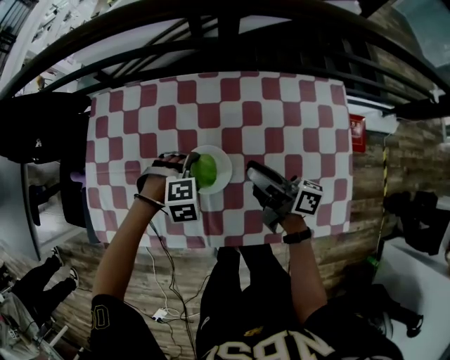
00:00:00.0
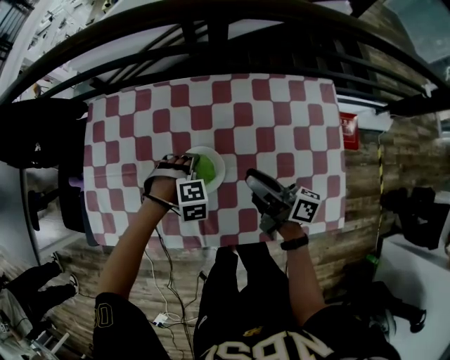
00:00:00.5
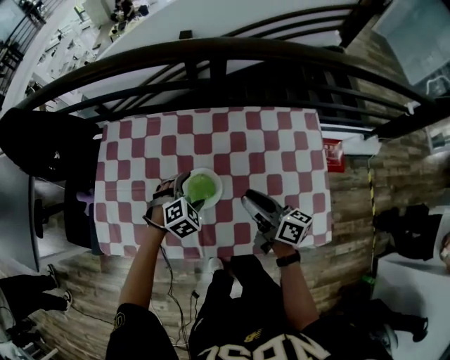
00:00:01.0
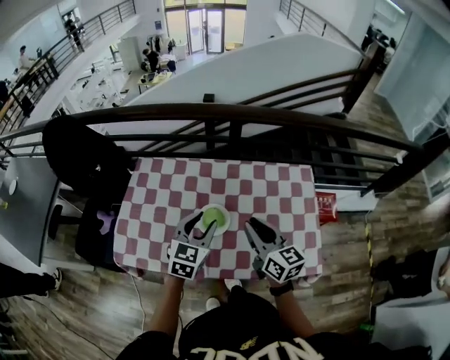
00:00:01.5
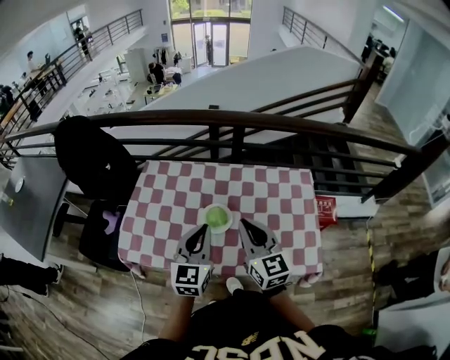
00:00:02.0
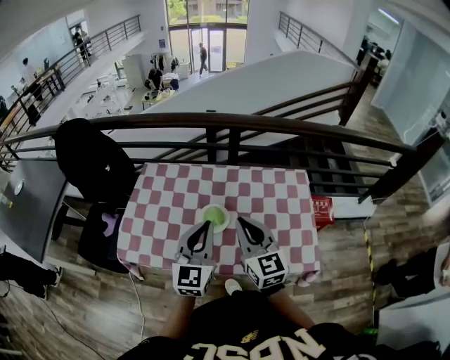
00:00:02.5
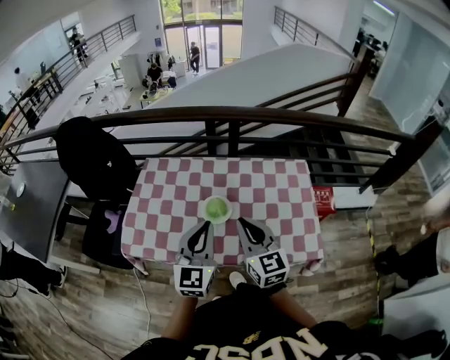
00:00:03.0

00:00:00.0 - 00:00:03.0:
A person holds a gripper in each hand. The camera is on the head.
00:00:00.0 - 00:00:01.5: The right gripper shifts about 20 cm upward, and rolls counterclockwise, seen from behind, by about 50 degrees. The left gripper shifts about 25 cm upward, angles its fingers upward, by roughly 50 degrees, and closes its fingers.
00:00:01.5 - 00:00:03.0: The right gripper goes roughly 10 cm backward, and rotates roughly 20 degrees. The left gripper travels backward and upward by roughly 15 cm, turns by roughly 20 degrees, and closes up.

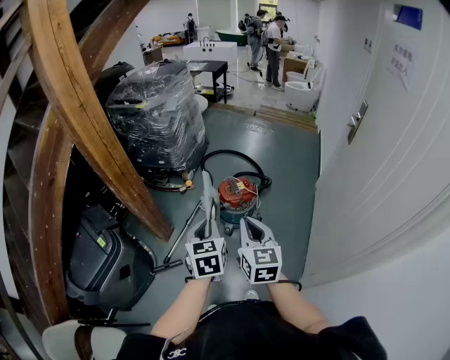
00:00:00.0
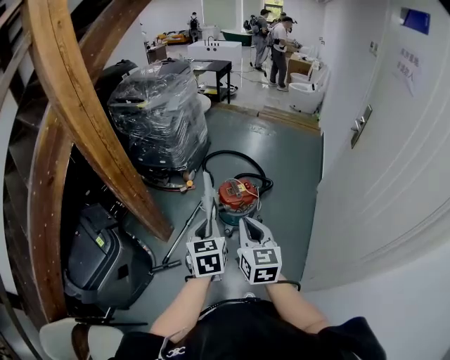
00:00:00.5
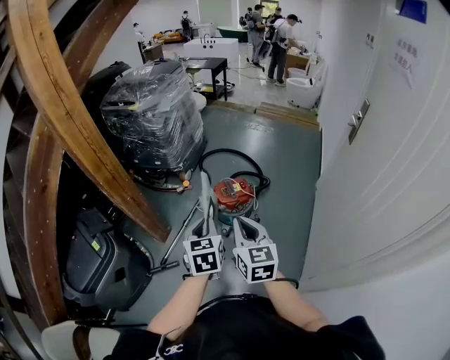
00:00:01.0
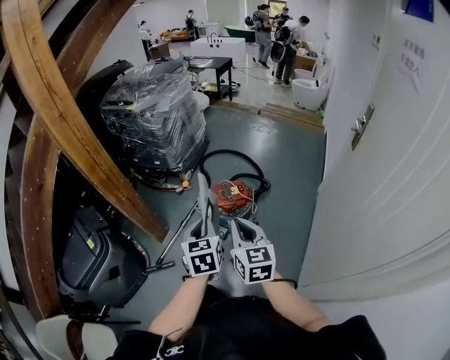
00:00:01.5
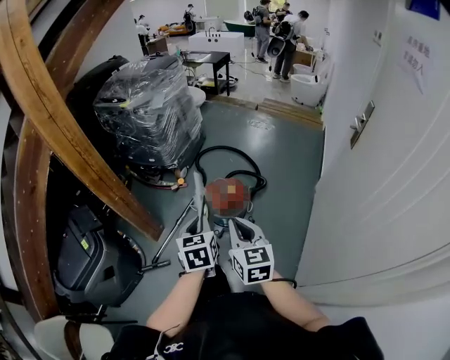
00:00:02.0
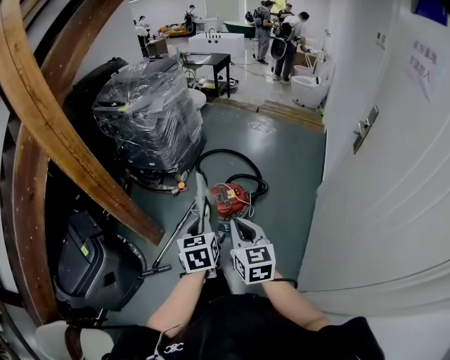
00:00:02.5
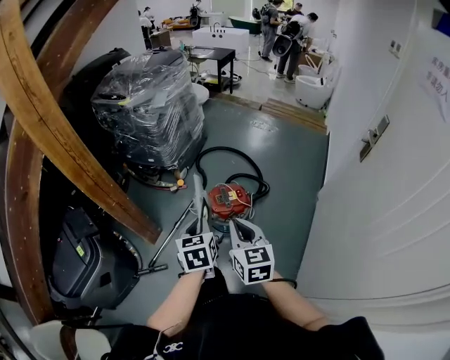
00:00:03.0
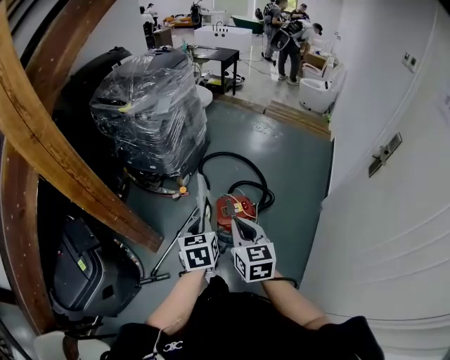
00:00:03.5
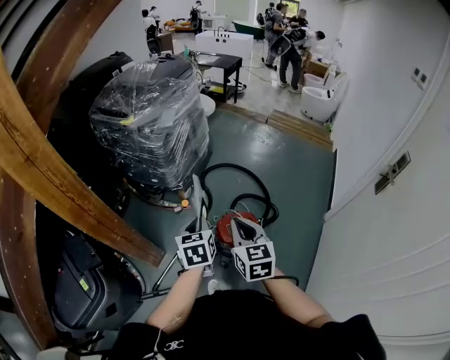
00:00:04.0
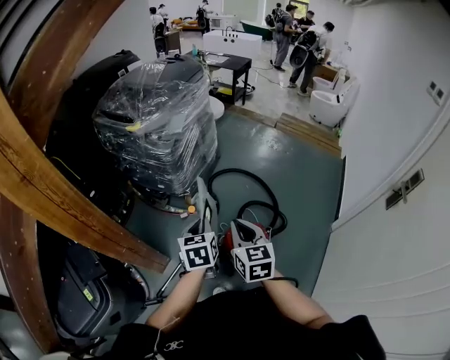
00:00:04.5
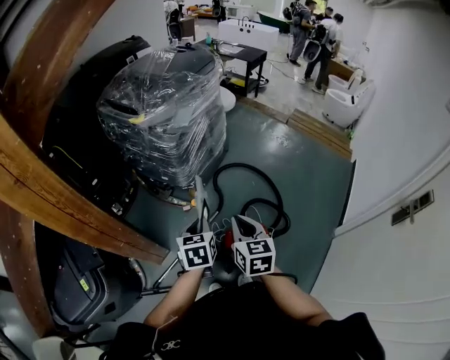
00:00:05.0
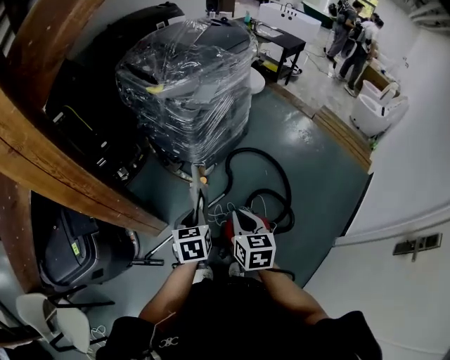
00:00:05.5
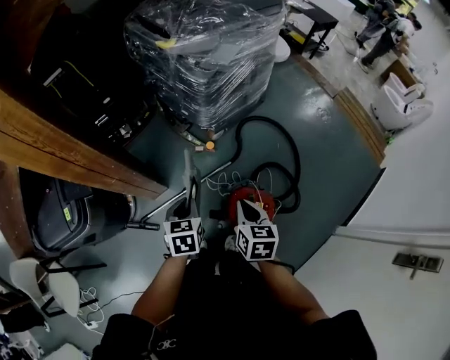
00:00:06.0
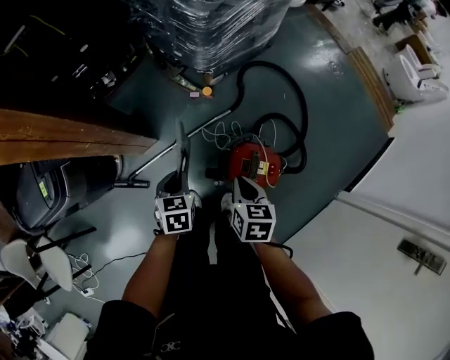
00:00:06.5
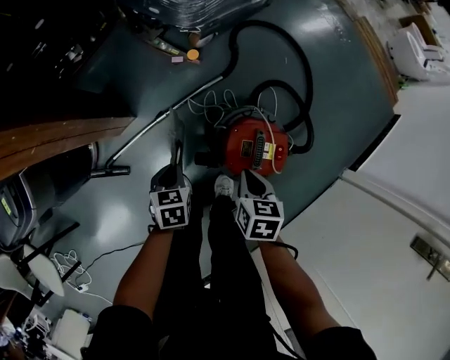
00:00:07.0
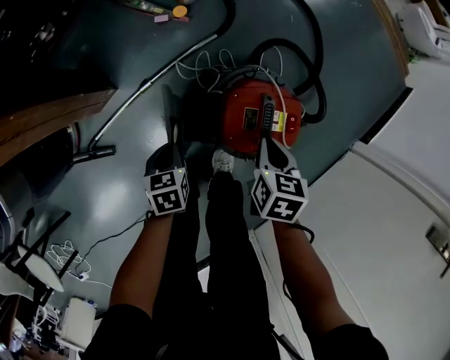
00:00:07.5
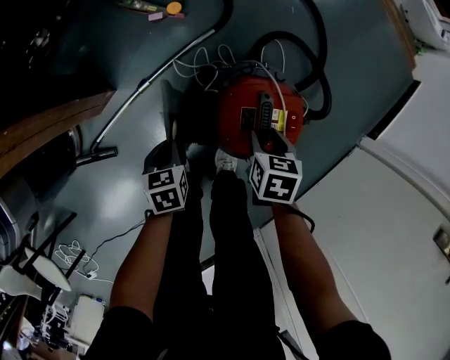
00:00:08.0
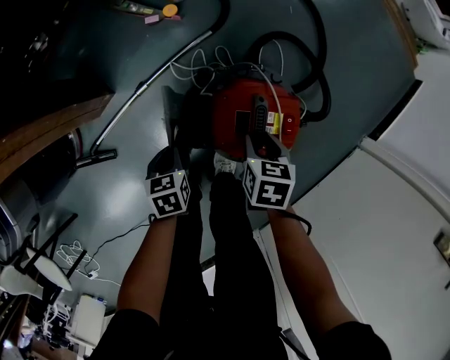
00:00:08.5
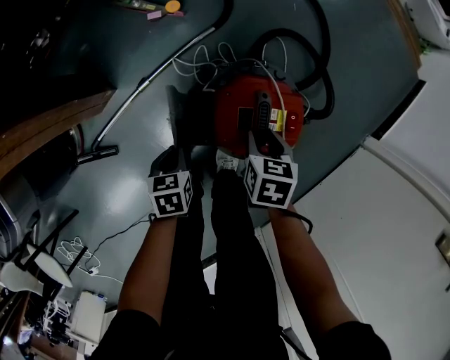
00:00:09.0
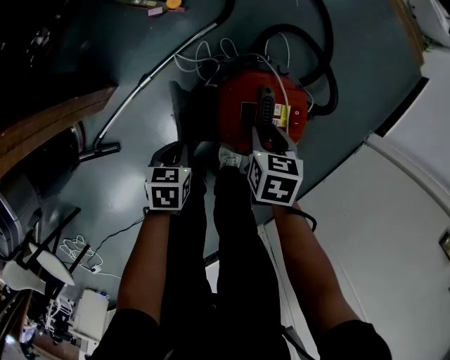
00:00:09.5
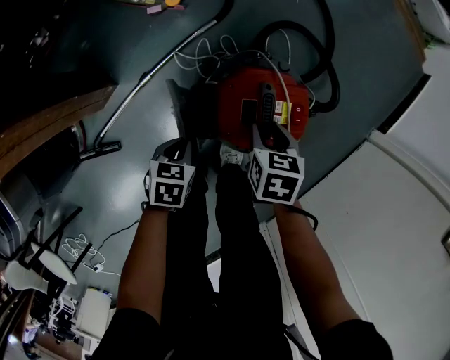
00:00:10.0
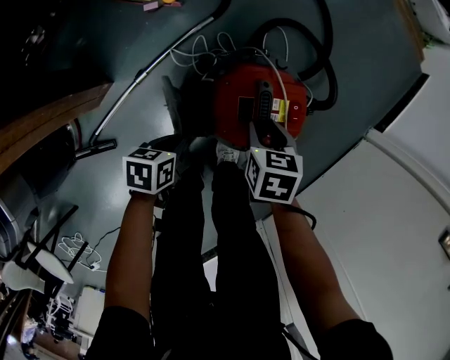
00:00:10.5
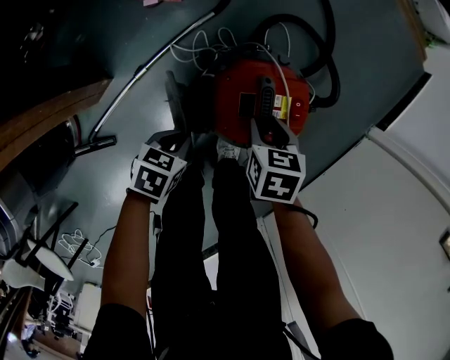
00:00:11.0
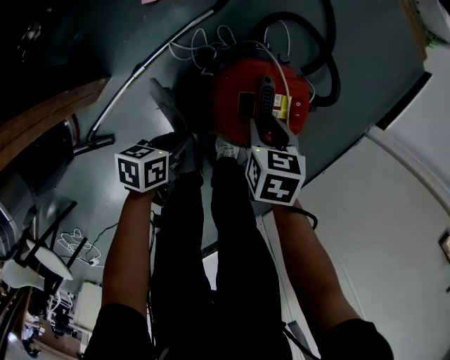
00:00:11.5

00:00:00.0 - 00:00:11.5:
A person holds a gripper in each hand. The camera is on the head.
00:00:00.0 - 00:00:02.0: The grippers both shift to the right and forward by about 15 cm.
00:00:02.0 - 00:00:04.0: The two grippers go approximately 25 cm forward.
00:00:04.0 - 00:00:06.0: The right gripper moves downward and forward, about 20 cm, and swivels some 30 degrees, while the left gripper shifts roughly 15 cm downward, forward and to the left, and swivels approximately 20 degrees.
00:00:06.0 - 00:00:07.5: Both grippers travel together downward, about 40 cm. The right gripper changes its angle by some 20 degrees.
00:00:07.5 - 00:00:09.5: The left gripper travels to the right by some 5 cm, while the right gripper heads downward, covering some 5 cm, and opens.
00:00:09.5 - 00:00:11.5: The left gripper swivels some 30 degrees.

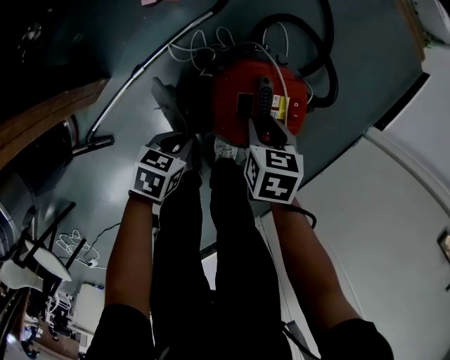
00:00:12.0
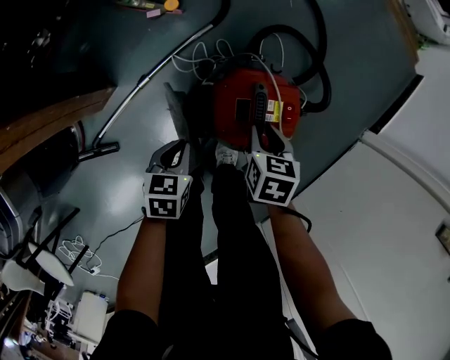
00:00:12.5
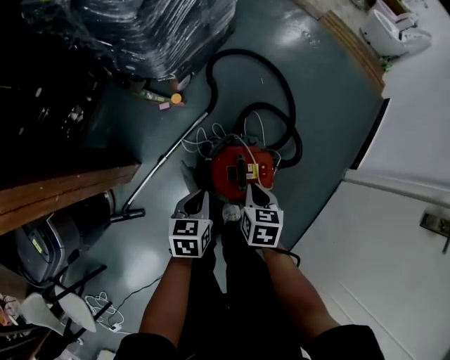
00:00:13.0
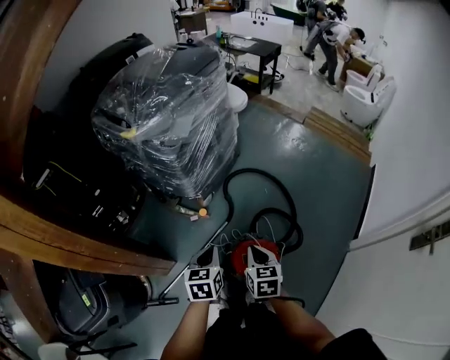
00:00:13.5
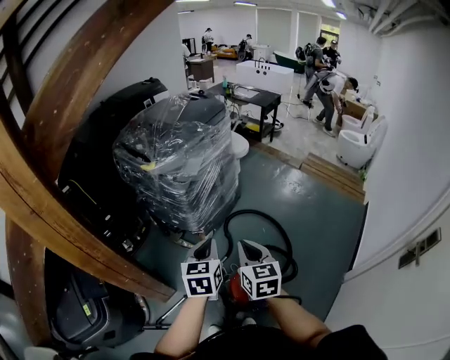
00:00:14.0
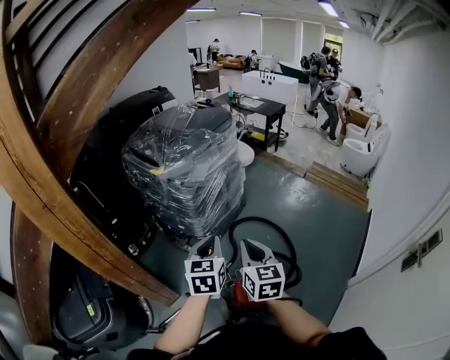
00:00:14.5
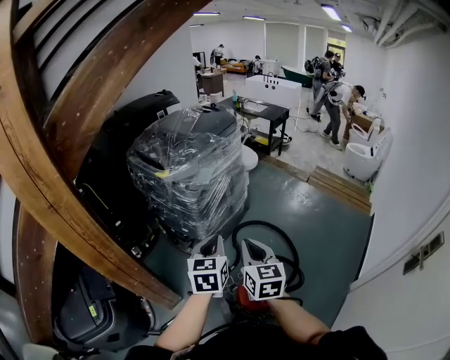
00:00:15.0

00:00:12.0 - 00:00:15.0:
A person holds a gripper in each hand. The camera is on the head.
00:00:12.0 - 00:00:13.5: Both grippers move upward, some 40 cm. The right gripper turns by about 30 degrees, and closes up, while the left gripper rotates roughly 40 degrees.
00:00:13.5 - 00:00:15.0: Both grippers move upward, some 20 cm. The left gripper changes its angle by about 20 degrees. Meanwhile the right gripper swivels approximately 30 degrees.

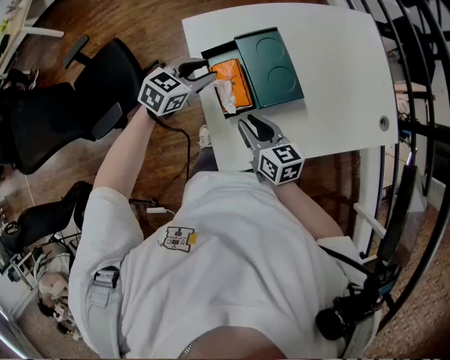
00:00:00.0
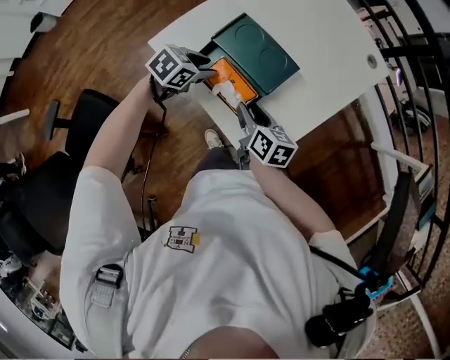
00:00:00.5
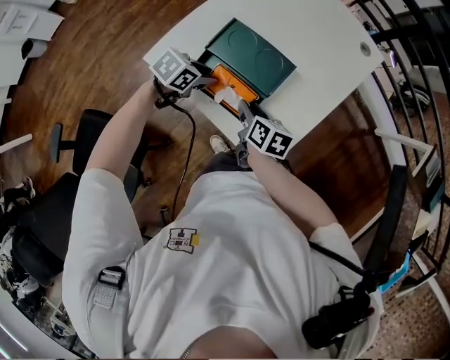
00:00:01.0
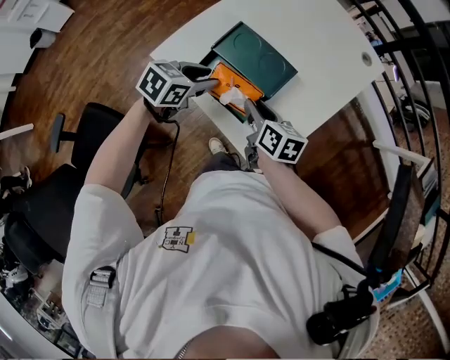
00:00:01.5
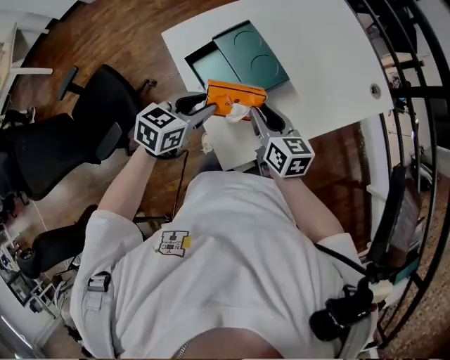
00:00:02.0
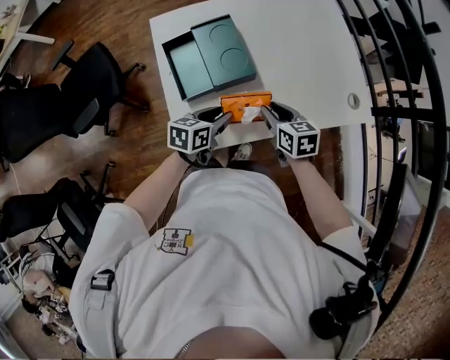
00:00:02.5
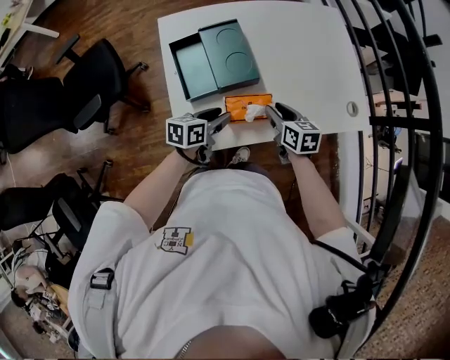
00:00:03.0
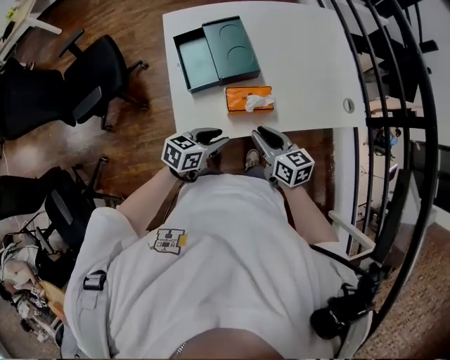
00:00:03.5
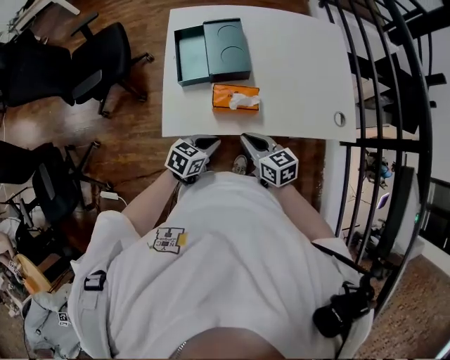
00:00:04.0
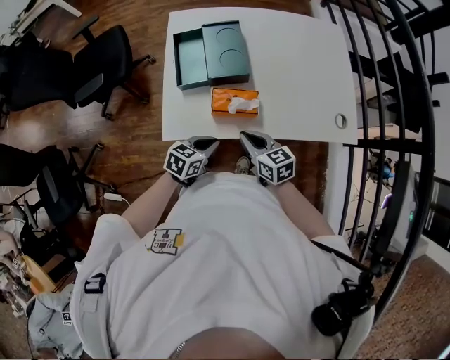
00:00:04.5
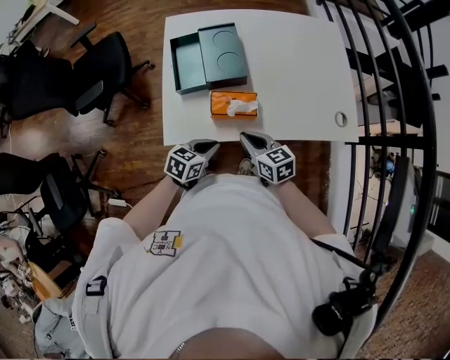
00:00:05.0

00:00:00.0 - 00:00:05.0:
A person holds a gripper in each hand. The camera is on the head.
00:00:00.0 - 00:00:02.5: The right gripper swings up and down, roughly 10 cm each way, with 2 reversals; the left gripper swings up and down, approximately 10 cm each way, with 2 reversals, and changes its angle by about 40 degrees.
00:00:02.5 - 00:00:05.0: The grippers both shift backward by some 10 cm. The left gripper closes. Meanwhile the right gripper rotates approximately 20 degrees, and closes its fingers.

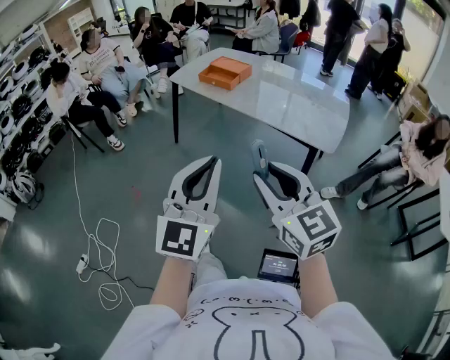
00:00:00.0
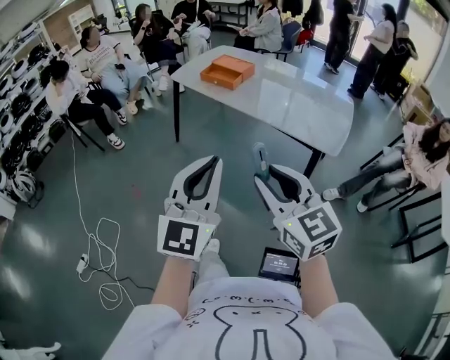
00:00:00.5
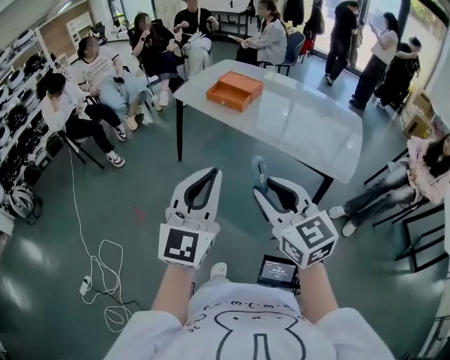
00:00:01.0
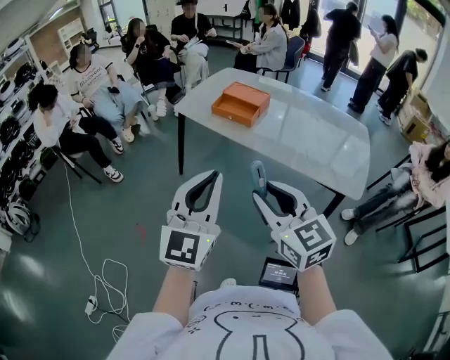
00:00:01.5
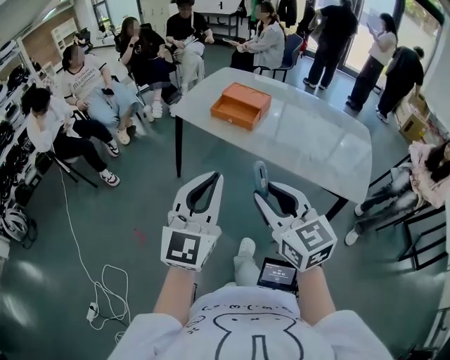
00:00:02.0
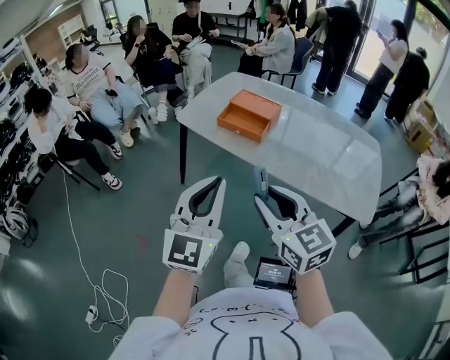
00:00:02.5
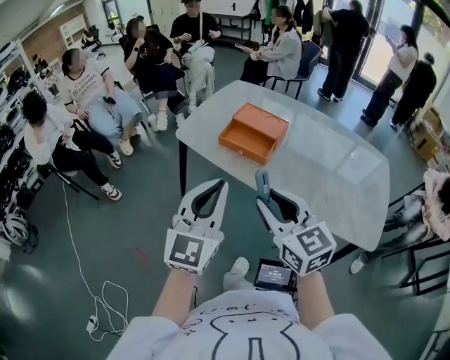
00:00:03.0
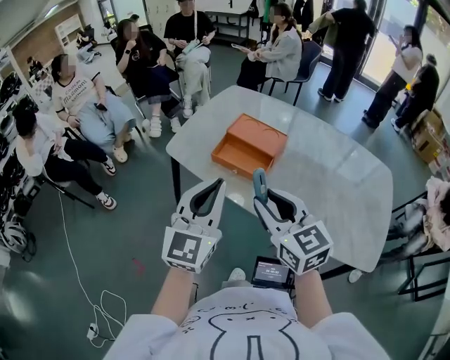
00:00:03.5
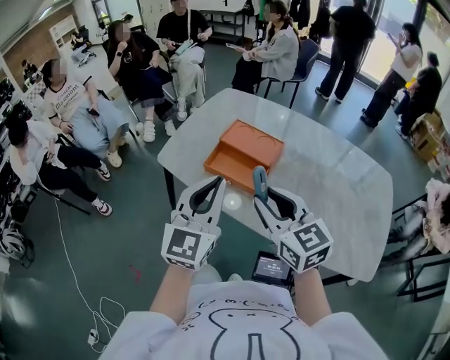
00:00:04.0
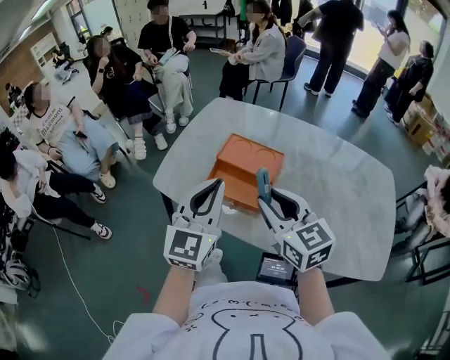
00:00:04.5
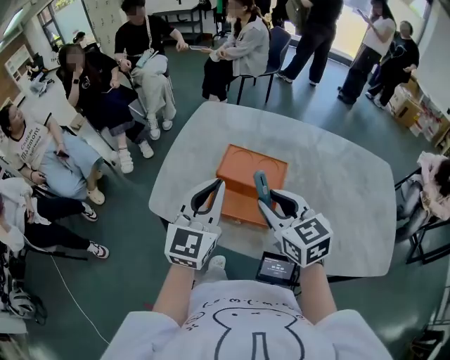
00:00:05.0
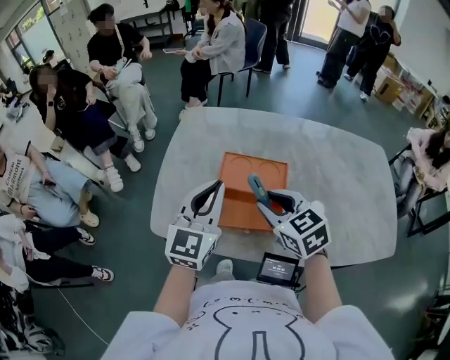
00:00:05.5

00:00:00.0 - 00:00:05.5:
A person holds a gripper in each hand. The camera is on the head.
00:00:00.0 - 00:00:02.0: Both grippers travel together forward and to the left, about 30 cm.
00:00:02.0 - 00:00:03.5: The two grippers go about 25 cm forward.
00:00:03.5 - 00:00:05.5: The grippers both shift forward by roughly 25 cm. The right gripper changes its angle by about 30 degrees; the left gripper changes its angle by approximately 20 degrees.
